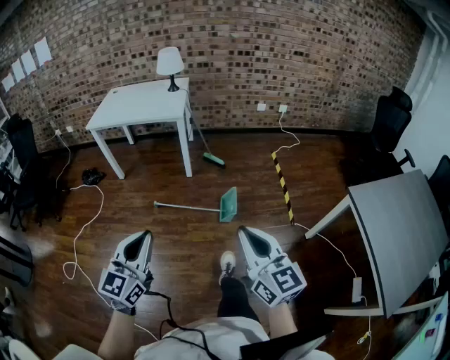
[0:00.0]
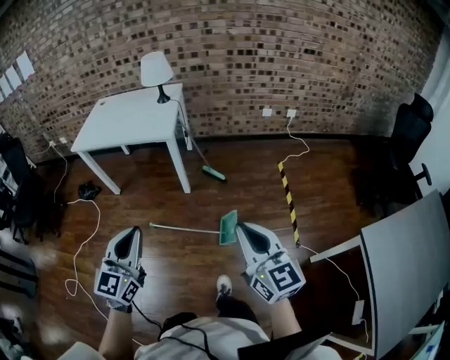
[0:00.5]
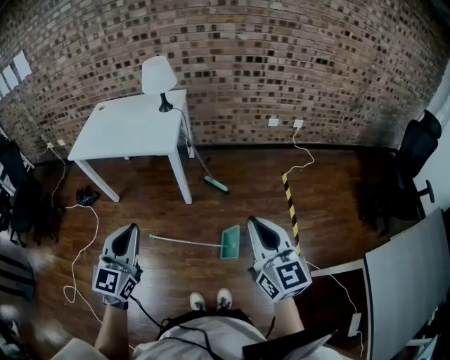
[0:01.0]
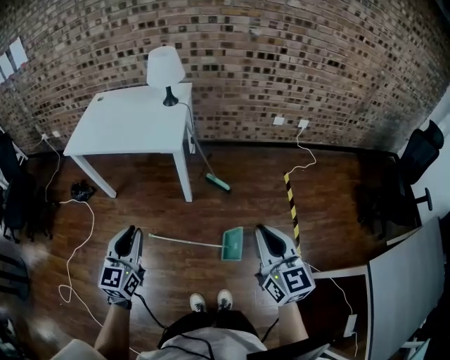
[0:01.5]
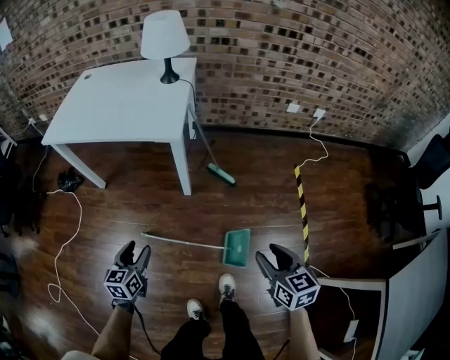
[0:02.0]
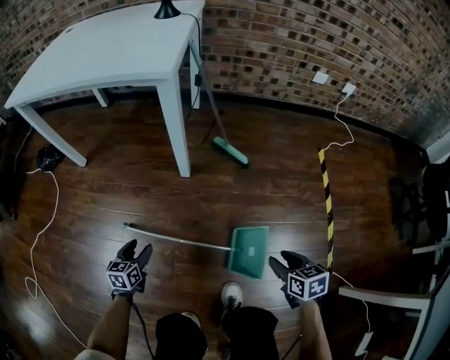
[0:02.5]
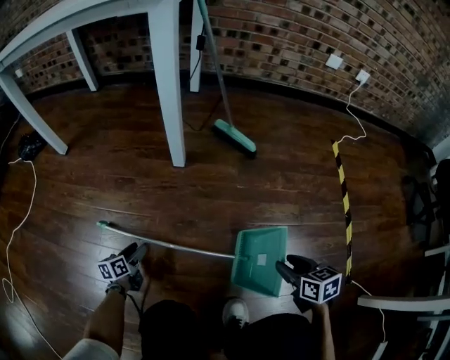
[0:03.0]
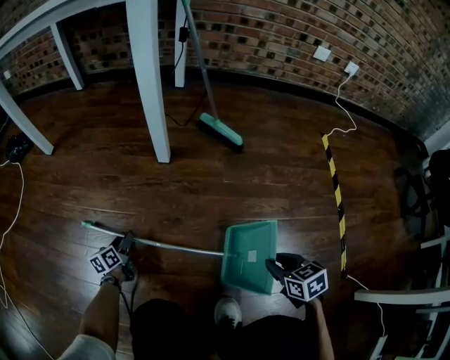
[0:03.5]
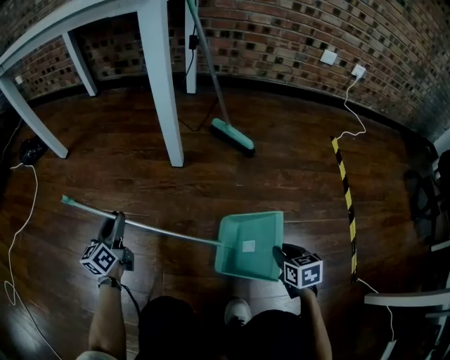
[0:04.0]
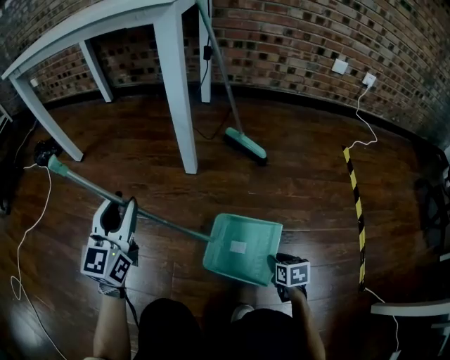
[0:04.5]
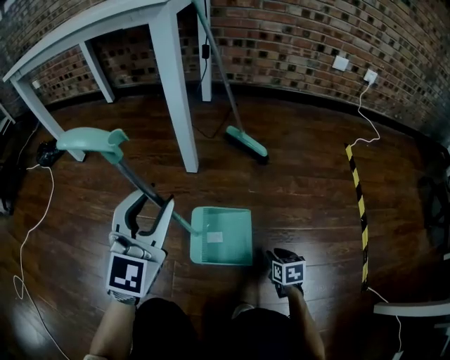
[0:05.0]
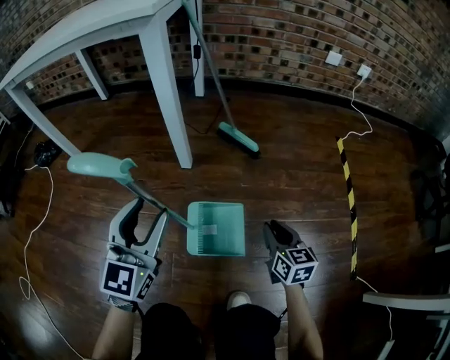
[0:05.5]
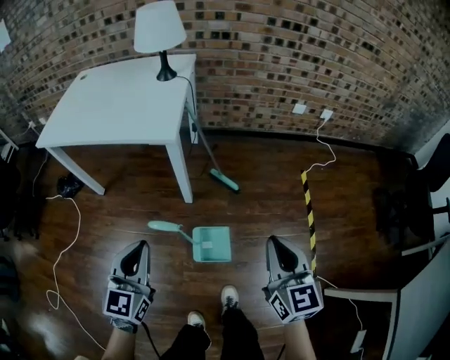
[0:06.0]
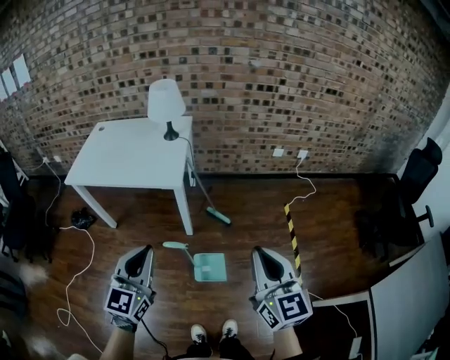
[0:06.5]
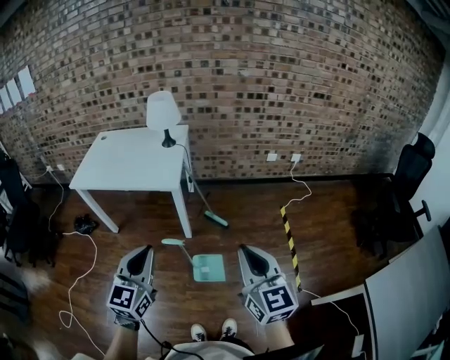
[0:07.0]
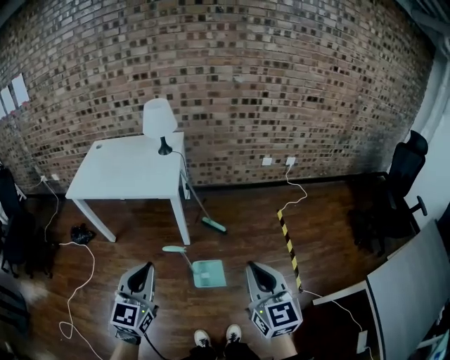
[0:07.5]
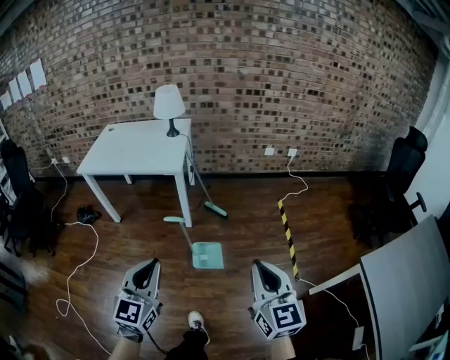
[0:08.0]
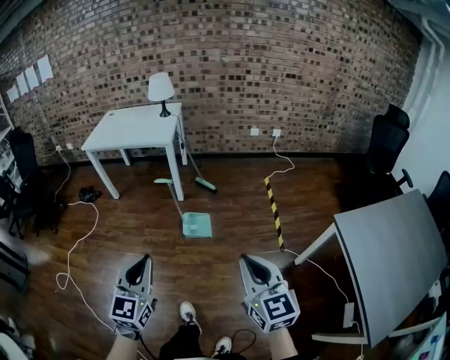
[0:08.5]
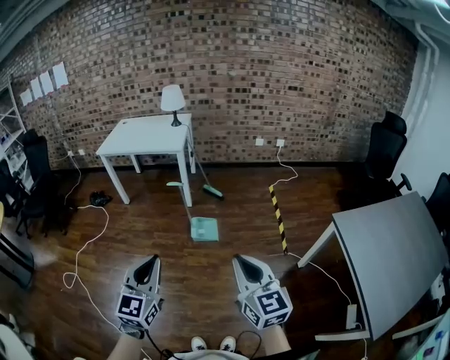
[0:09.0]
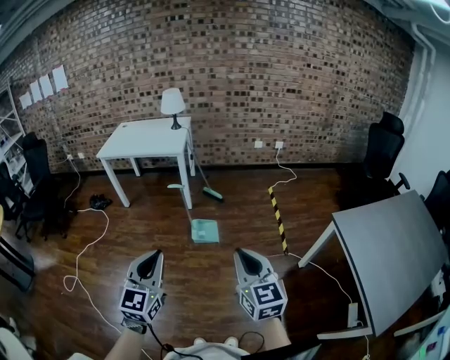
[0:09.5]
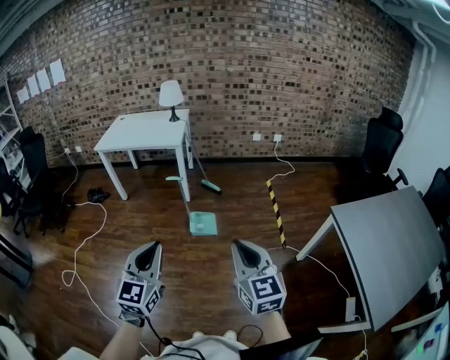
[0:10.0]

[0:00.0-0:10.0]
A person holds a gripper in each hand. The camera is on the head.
0:00.0 to 0:02.0: The pair of grippers is taken forward, approximately 50 cm. The grippers both shift downward by some 30 cm. The right gripper tips its fingers downward by roughly 30 degrees, and opens; the left gripper swivels about 40 degrees, and opens.
0:02.0 to 0:04.0: The two grippers go roughly 50 cm downward. The left gripper swivels some 30 degrees; the right gripper swivels roughly 20 degrees, and closes up.
0:04.0 to 0:06.0: Both grippers move upward, some 60 cm. The left gripper swivels some 40 degrees, and closes up; the right gripper angles its fingers upward, by approximately 40 degrees, and closes its fingers.
0:06.0 to 0:08.0: Both grippers travel together backward and upward, roughly 40 cm.
0:08.0 to 0:10.0: Both grippers move backward, approximately 30 cm.

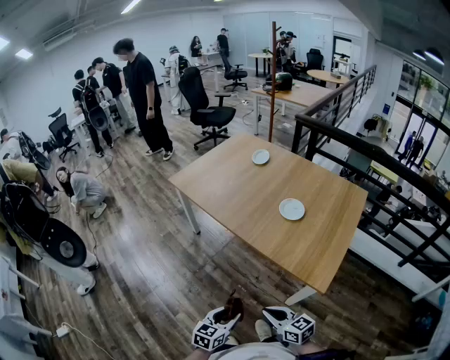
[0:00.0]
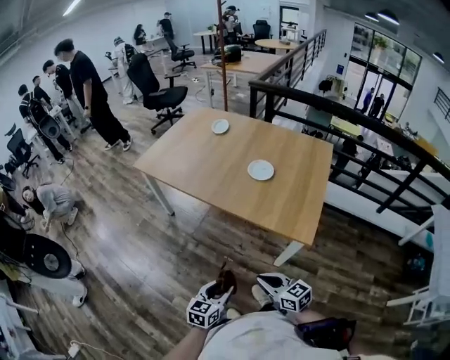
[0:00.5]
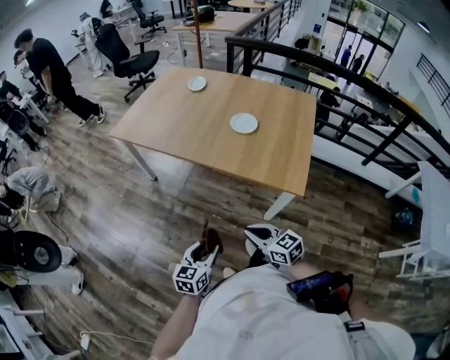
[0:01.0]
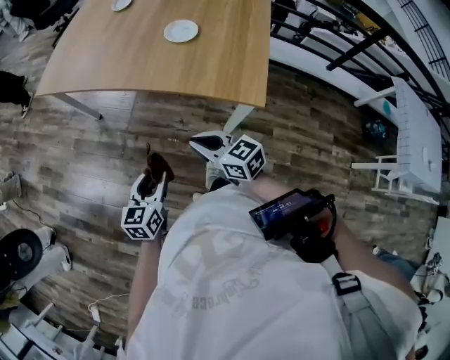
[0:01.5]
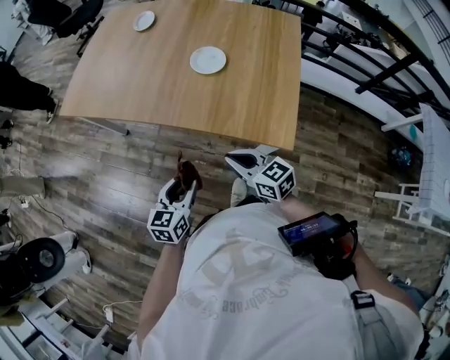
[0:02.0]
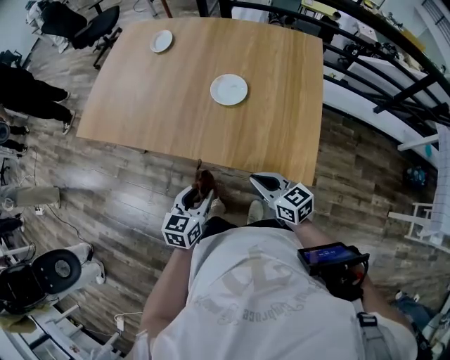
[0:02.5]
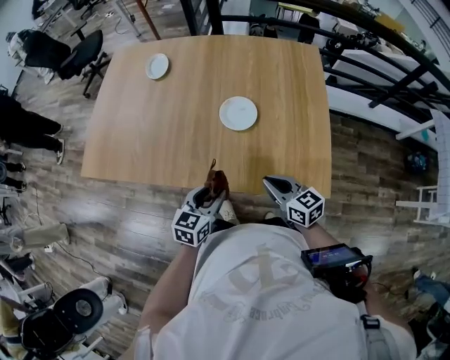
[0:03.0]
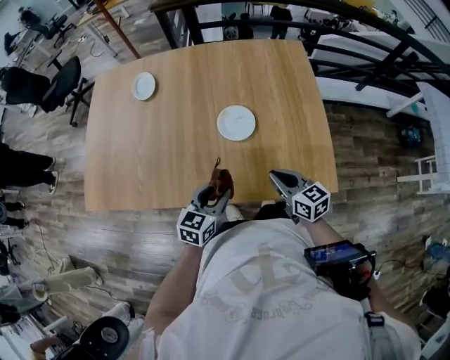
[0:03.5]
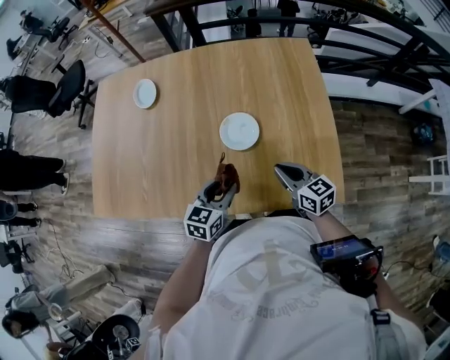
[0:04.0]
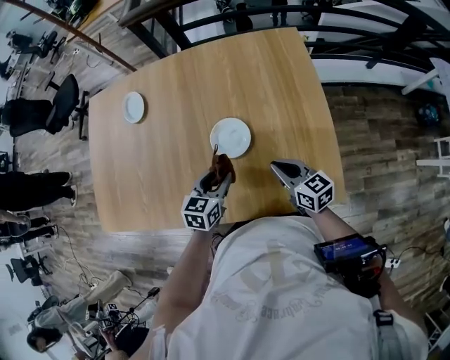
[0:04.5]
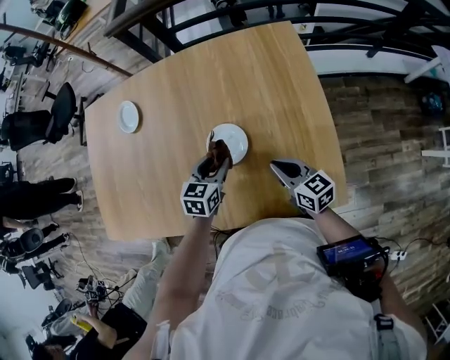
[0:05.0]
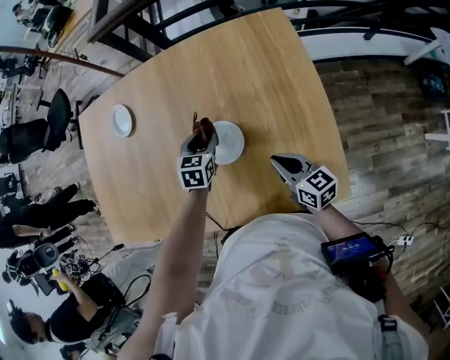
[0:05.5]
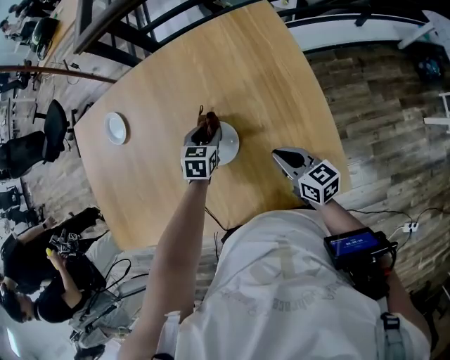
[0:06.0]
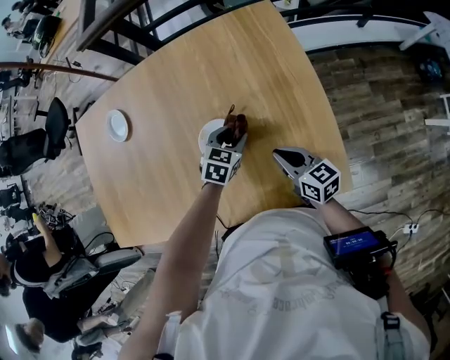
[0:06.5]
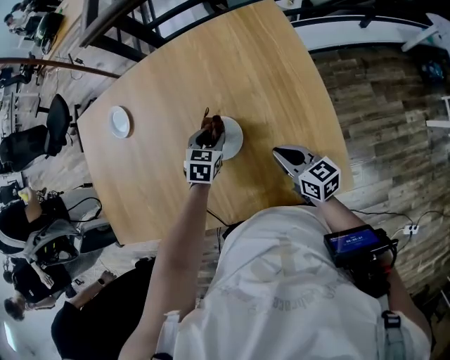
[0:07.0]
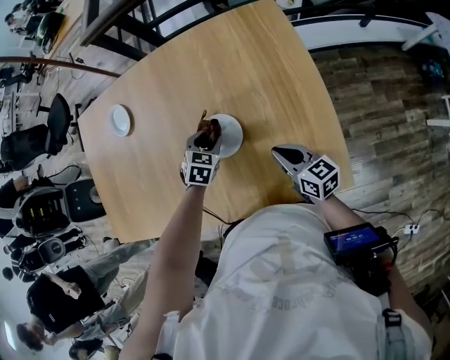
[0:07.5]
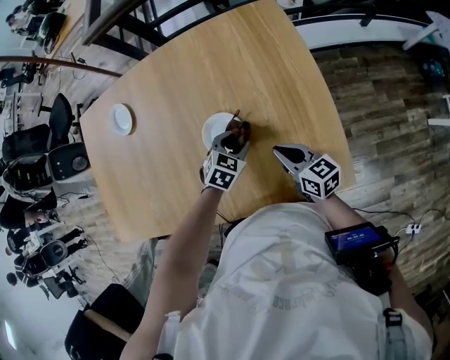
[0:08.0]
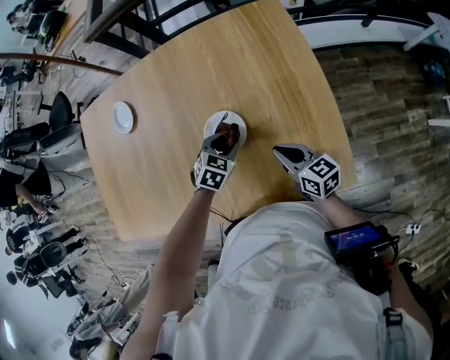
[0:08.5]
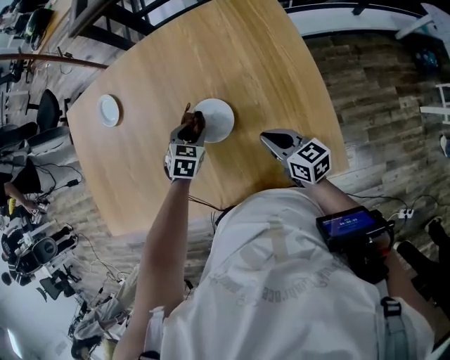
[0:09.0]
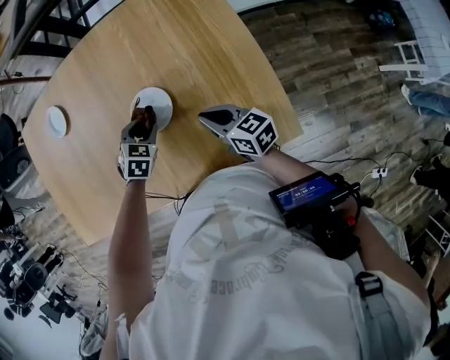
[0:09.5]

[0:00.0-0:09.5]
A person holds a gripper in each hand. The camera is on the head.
0:00.0 to 0:02.0: The left gripper goes roughly 15 cm forward. Meanwhile the right gripper is displaced forward and to the right by some 15 cm.
0:02.0 to 0:04.0: The right gripper shifts by some 25 cm, and changes its angle by about 30 degrees; the left gripper shifts by some 30 cm, and changes its angle by about 30 degrees.
0:04.0 to 0:05.5: The right gripper travels forward by some 5 cm. Meanwhile the left gripper heads forward, covering about 20 cm, and rotates about 20 degrees.
0:05.5 to 0:07.5: The left gripper moves about 10 cm to the right and comes back, and changes its angle by some 20 degrees.
0:07.5 to 0:09.5: The left gripper travels to the right and back again, some 10 cm each way.

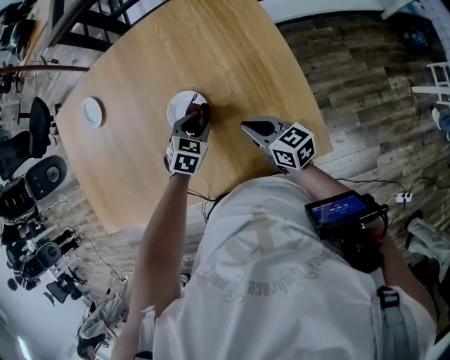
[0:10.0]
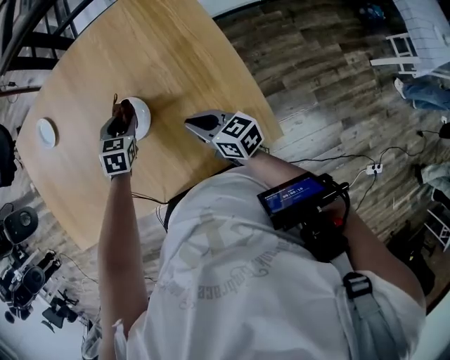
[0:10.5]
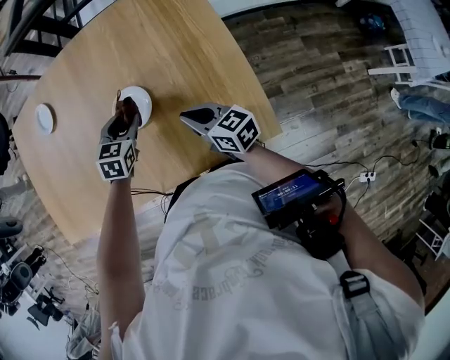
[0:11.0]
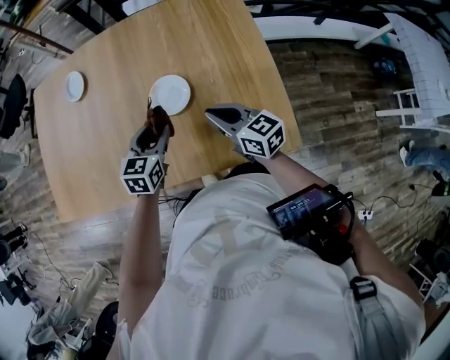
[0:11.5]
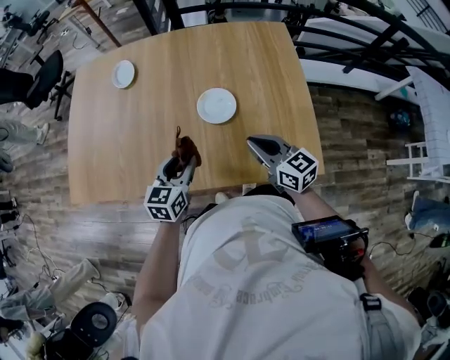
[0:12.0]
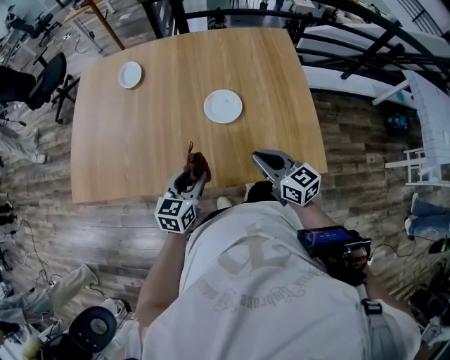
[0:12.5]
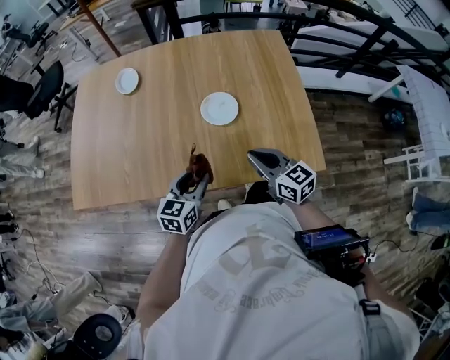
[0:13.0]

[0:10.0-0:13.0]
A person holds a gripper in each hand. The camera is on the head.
0:10.0 to 0:11.5: The right gripper heads upward, covering about 5 cm, while the left gripper shifts approximately 15 cm upward, backward and to the left, and turns by about 40 degrees.
0:11.5 to 0:13.0: The left gripper shifts approximately 15 cm backward and to the left, while the right gripper travels to the left and backward by roughly 10 cm.

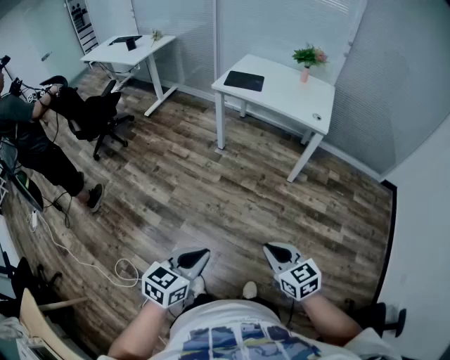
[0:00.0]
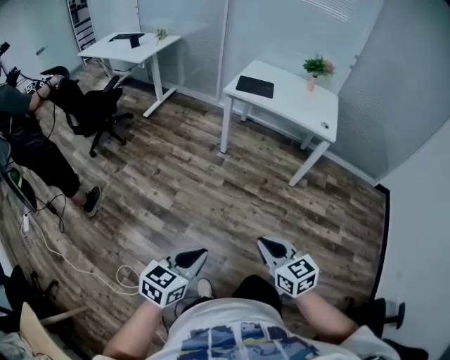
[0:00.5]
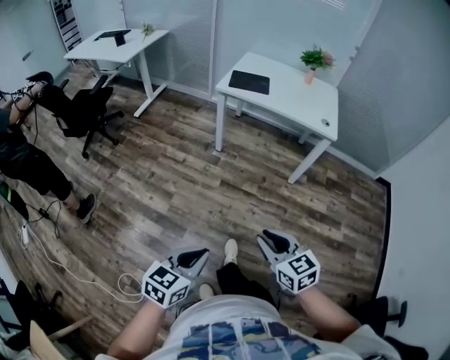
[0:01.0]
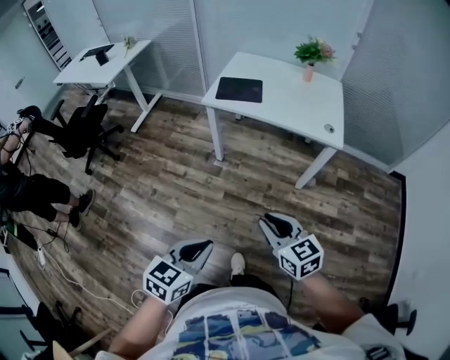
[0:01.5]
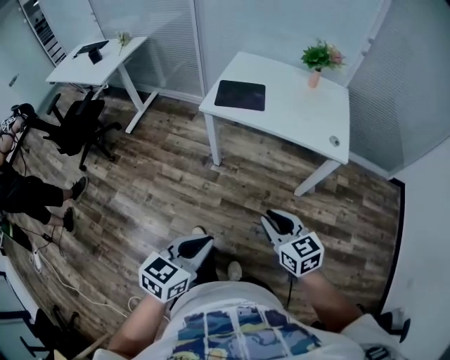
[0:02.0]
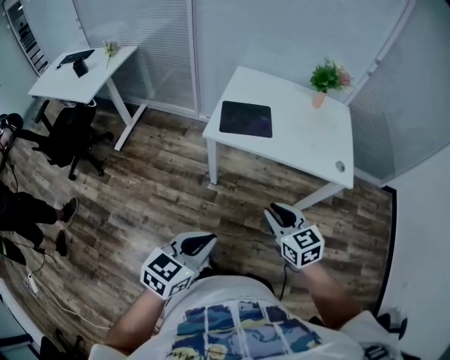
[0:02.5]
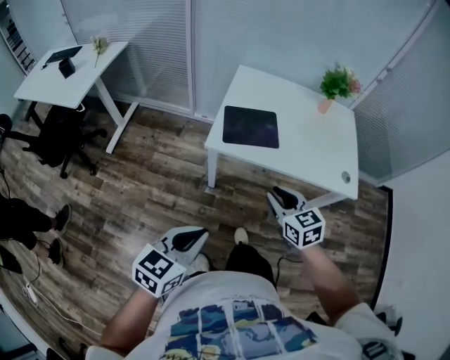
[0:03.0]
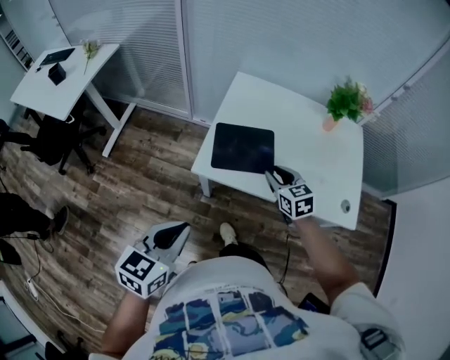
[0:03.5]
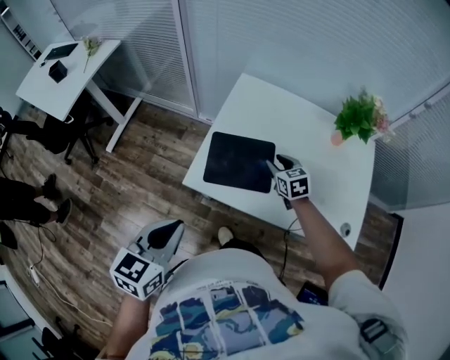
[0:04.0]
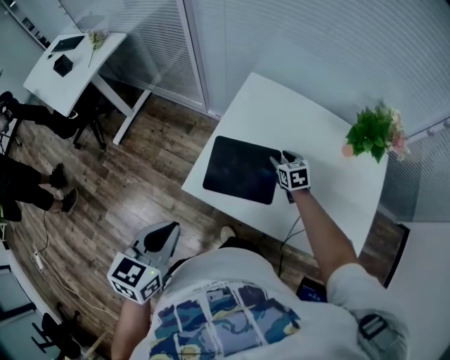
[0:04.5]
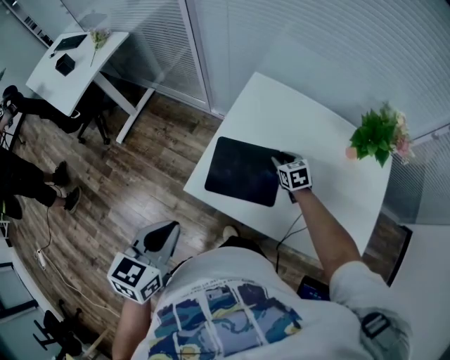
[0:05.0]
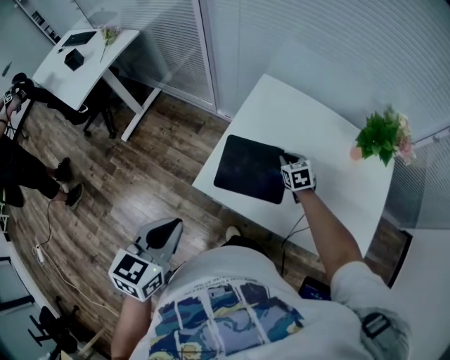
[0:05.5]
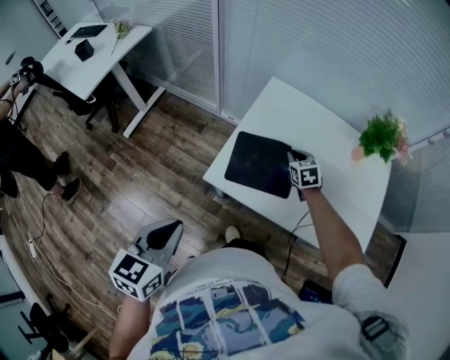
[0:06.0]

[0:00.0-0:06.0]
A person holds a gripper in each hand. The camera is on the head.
0:00.0 to 0:02.0: Both grippers are carried forward, about 40 cm.
0:02.0 to 0:04.0: Both grippers are carried forward, some 60 cm.
0:04.0 to 0:06.0: The right gripper shifts approximately 5 cm forward, and closes, while the left gripper is displaced to the left by about 5 cm, and reaches about 5 cm forward, then returns.
